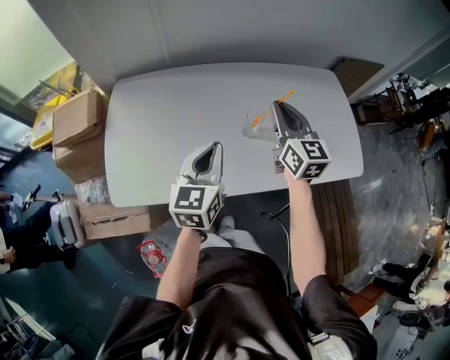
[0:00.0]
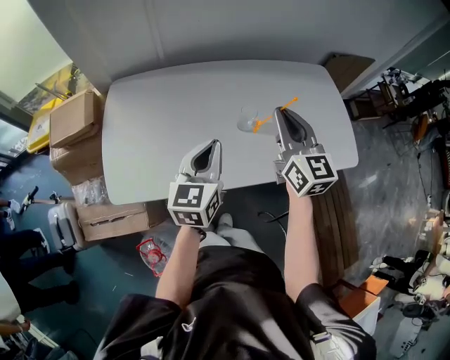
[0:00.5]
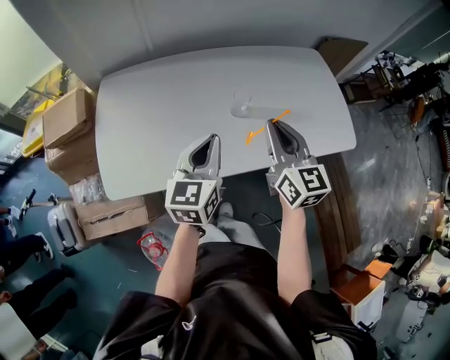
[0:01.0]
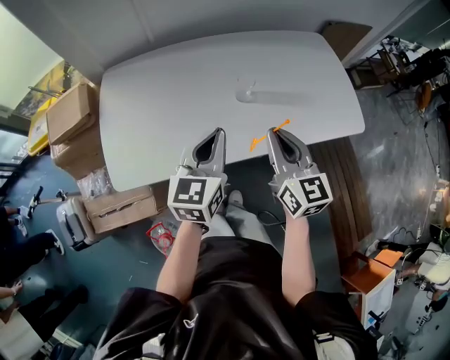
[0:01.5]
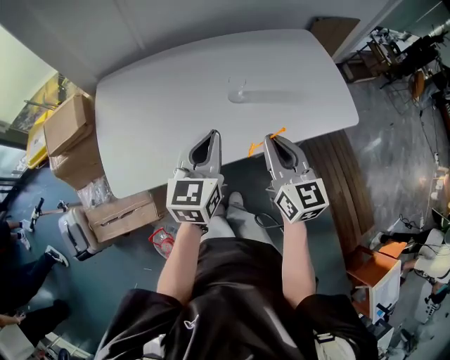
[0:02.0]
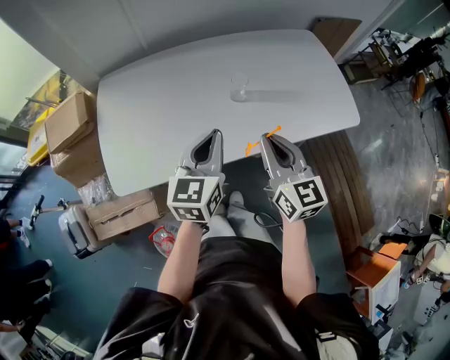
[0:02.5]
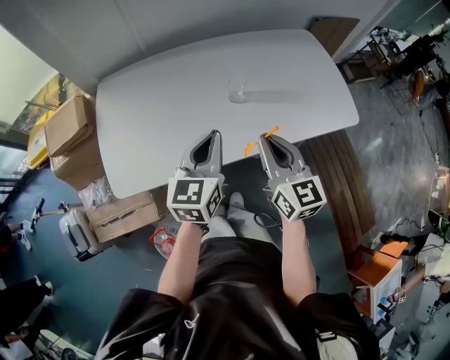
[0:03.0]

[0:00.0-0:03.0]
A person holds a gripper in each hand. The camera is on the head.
0:00.0 to 0:01.5: The left gripper shifts approximately 5 cm backward. Meanwhile the right gripper shifts about 20 cm backward.
0:01.5 to 0:03.0: The grippers move only a little.

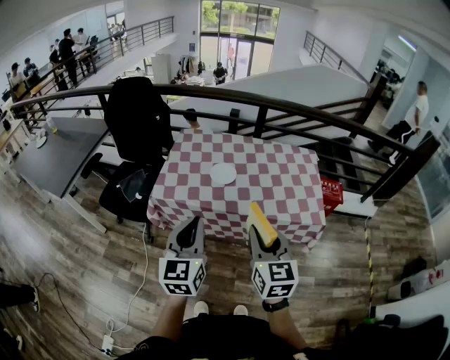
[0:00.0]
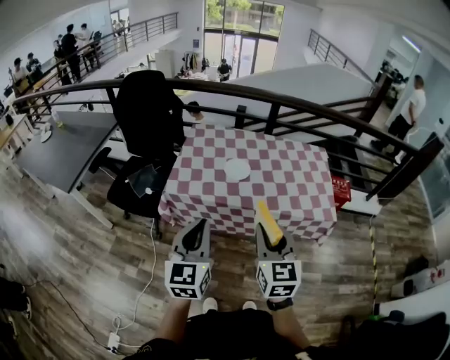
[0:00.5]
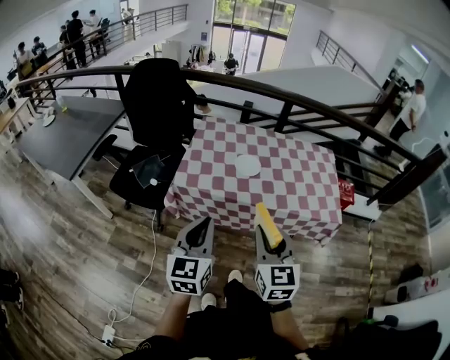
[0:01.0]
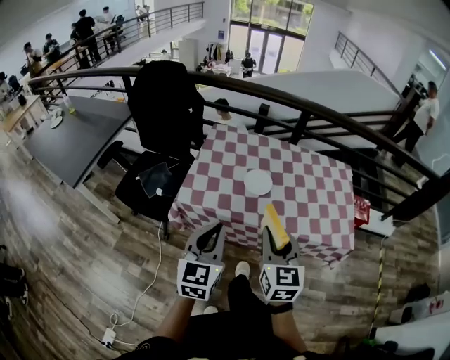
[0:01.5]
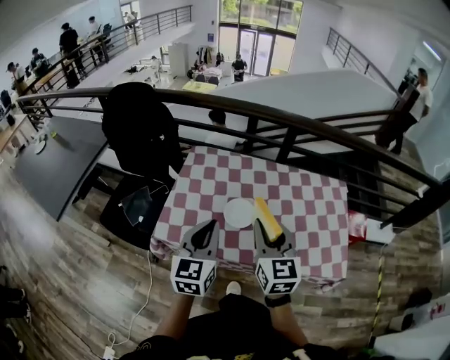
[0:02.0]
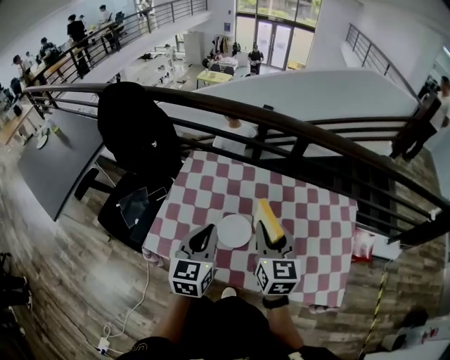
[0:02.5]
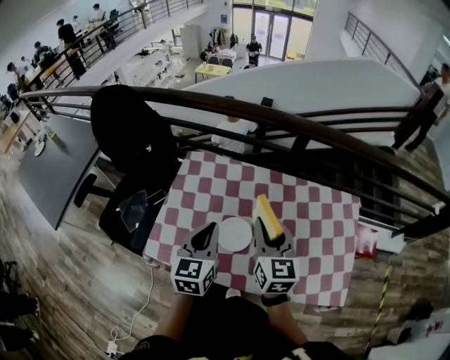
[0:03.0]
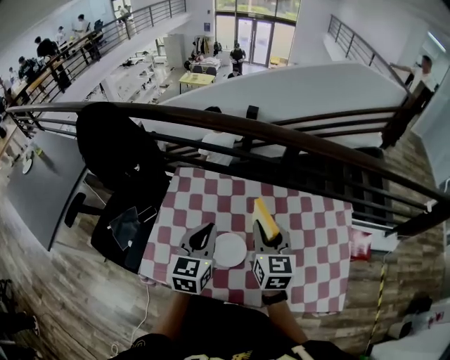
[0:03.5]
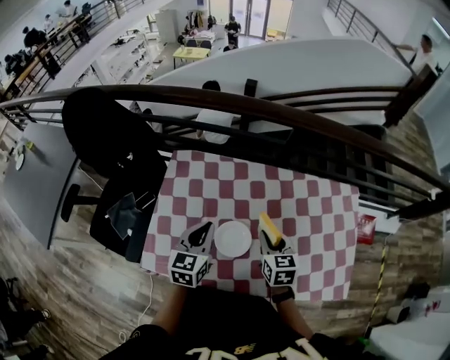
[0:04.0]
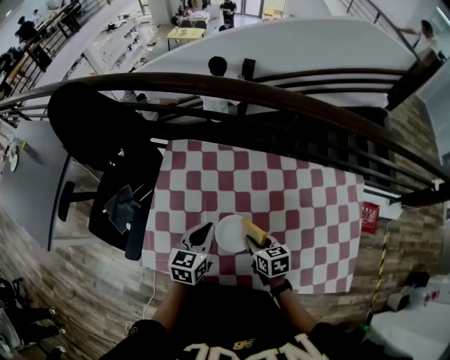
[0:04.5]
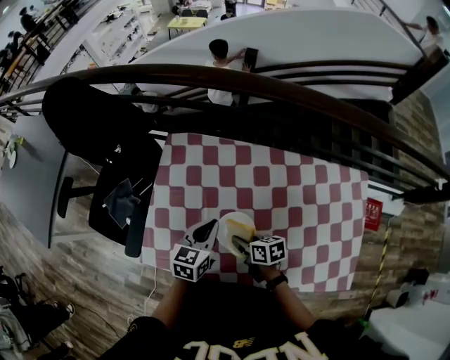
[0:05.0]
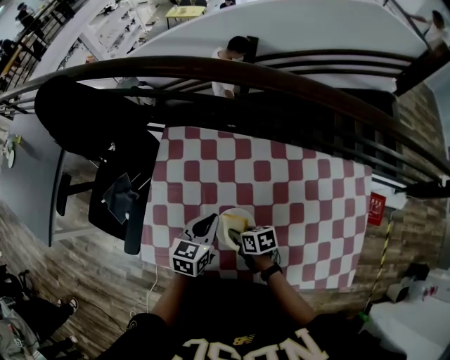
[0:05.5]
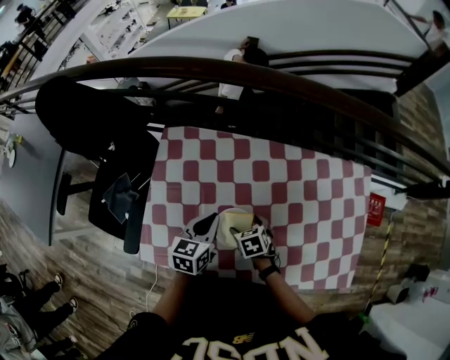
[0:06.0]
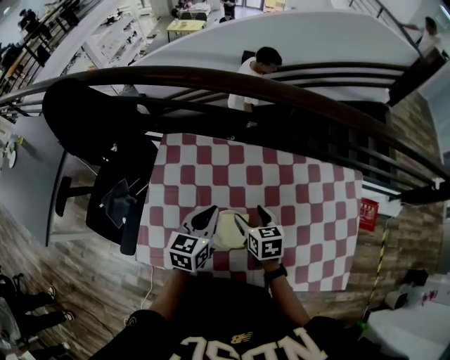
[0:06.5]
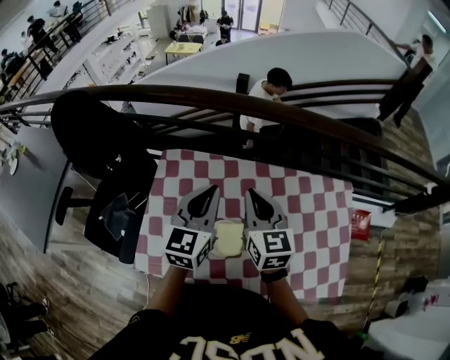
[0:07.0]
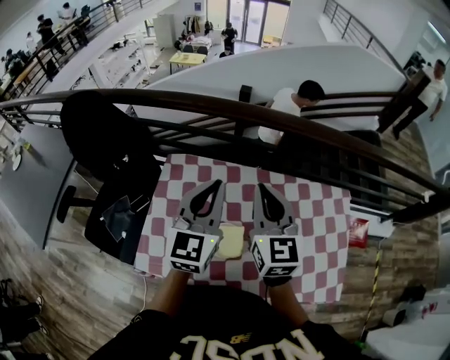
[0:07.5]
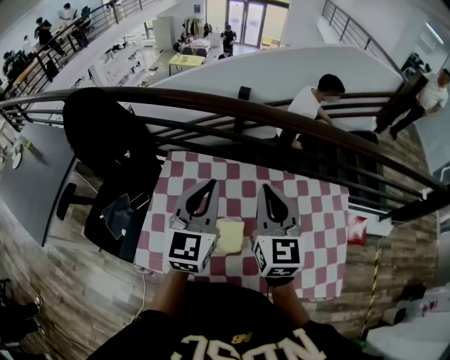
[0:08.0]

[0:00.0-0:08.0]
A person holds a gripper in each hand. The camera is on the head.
0:00.0 to 0:02.0: Both grippers move forward, some 30 cm.
0:02.0 to 0:04.0: The right gripper goes about 30 cm downward and forward, and turns by roughly 30 degrees; the left gripper heads forward and downward, covering approximately 25 cm.
0:04.0 to 0:06.0: The left gripper shifts roughly 10 cm downward. The right gripper shifts roughly 20 cm downward and to the left, rotates some 30 degrees, and opens up.
0:06.0 to 0:08.0: Both grippers travel together upward, approximately 35 cm. The right gripper tilts its fingers roughly 60 degrees upward, and closes up, while the left gripper angles its fingers upward, by about 30 degrees.

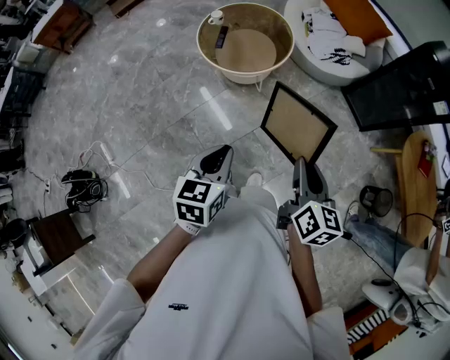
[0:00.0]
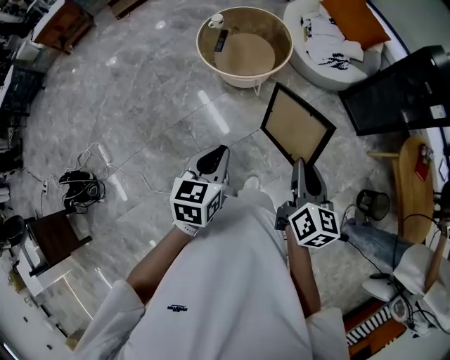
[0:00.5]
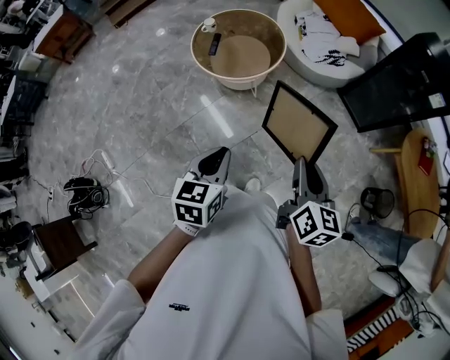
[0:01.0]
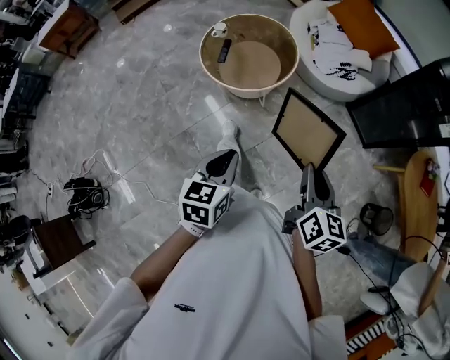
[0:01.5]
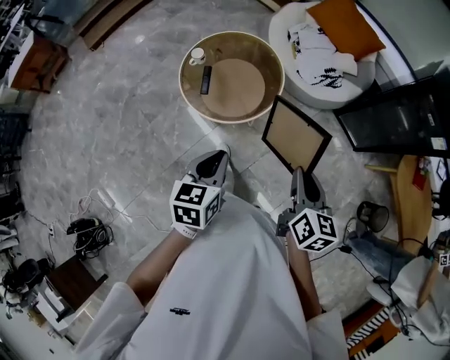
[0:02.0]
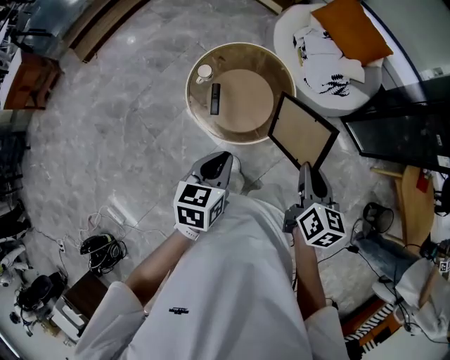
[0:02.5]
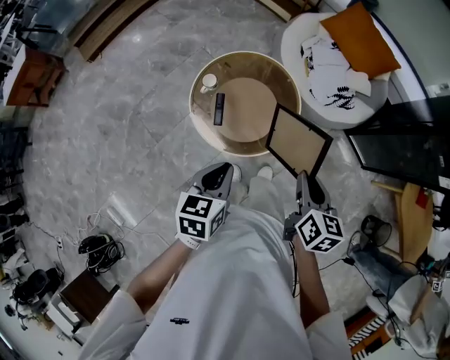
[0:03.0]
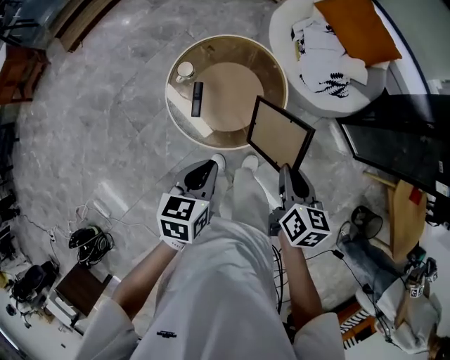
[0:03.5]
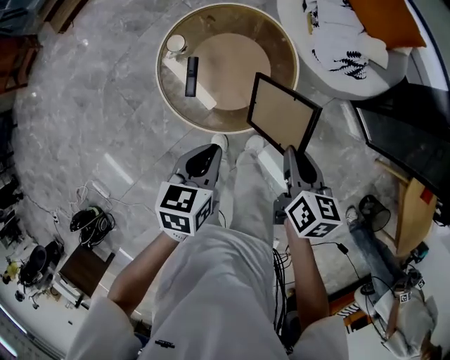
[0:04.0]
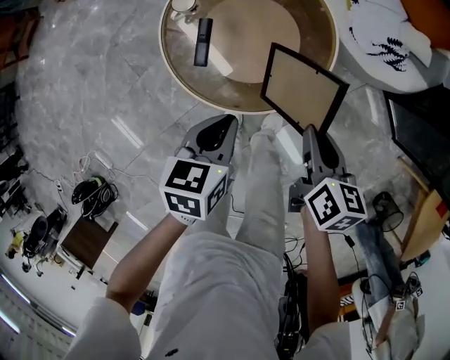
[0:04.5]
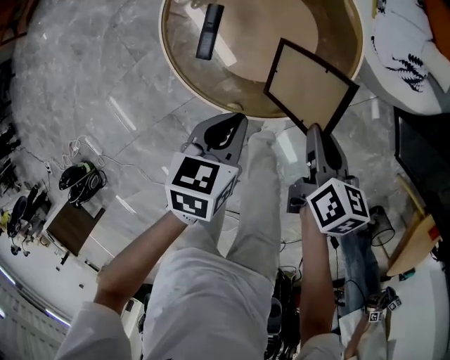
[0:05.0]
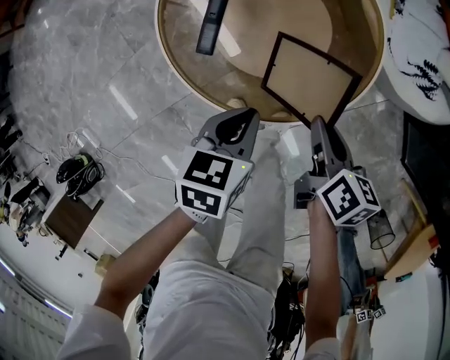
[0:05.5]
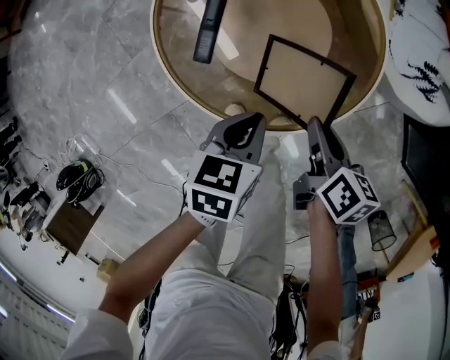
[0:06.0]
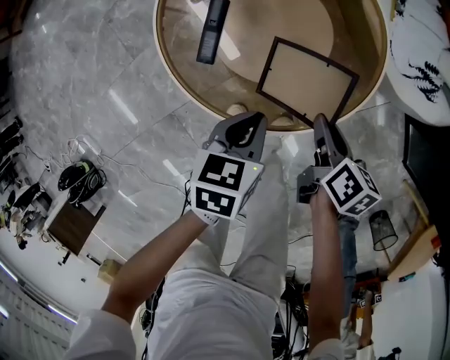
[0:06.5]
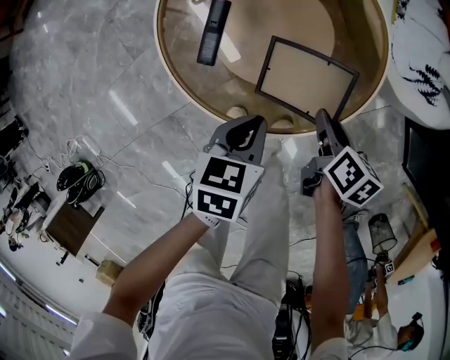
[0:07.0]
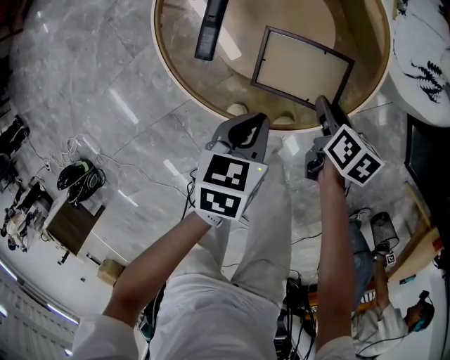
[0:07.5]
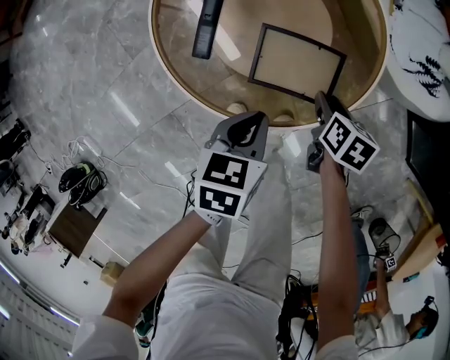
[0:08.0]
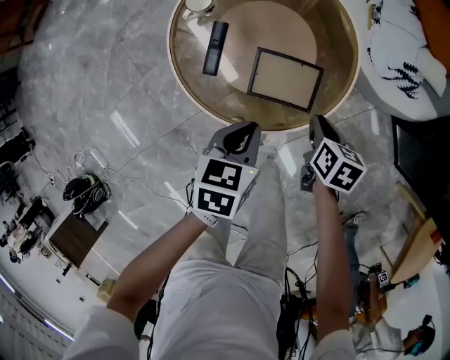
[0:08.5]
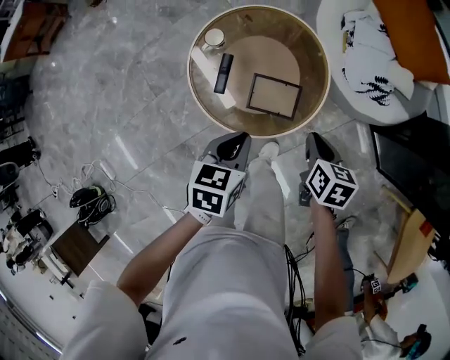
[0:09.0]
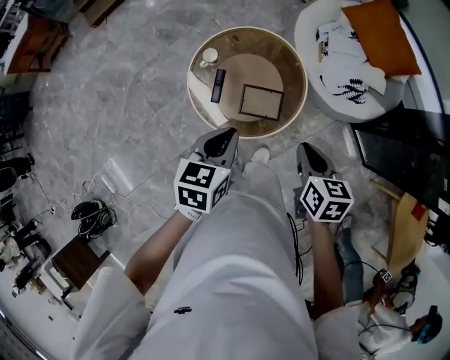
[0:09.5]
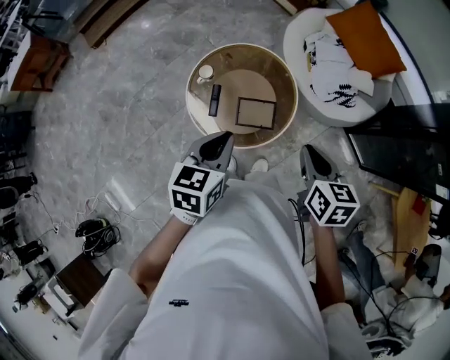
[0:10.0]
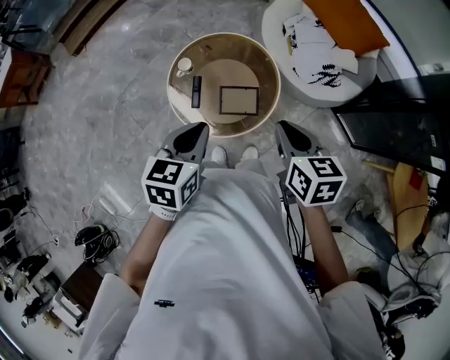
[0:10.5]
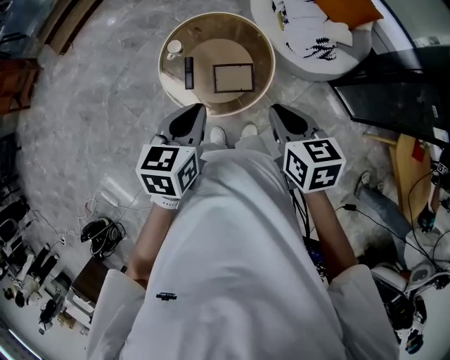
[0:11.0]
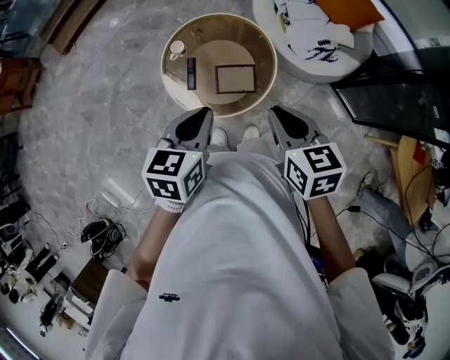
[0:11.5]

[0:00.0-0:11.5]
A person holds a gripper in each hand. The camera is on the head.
0:00.0 to 0:02.0: Both grippers travel together forward, roughly 25 cm.
0:02.0 to 0:04.0: Both grippers move forward and downward, some 30 cm.
0:04.0 to 0:06.0: Both grippers move downward, some 30 cm.
0:06.0 to 0:07.5: The right gripper goes some 10 cm downward, and opens up.
0:07.5 to 0:09.5: Both grippers travel together upward, roughly 40 cm. The right gripper changes its angle by roughly 20 degrees, and closes up.
0:09.5 to 0:11.5: The two grippers go about 10 cm upward.

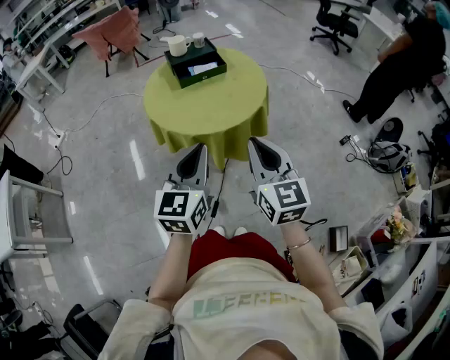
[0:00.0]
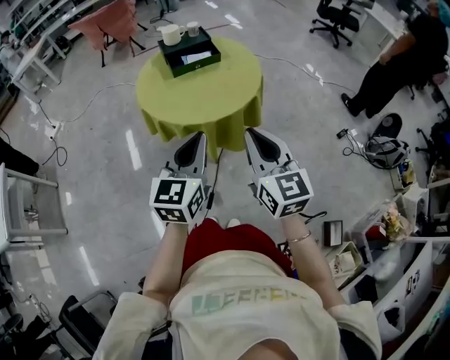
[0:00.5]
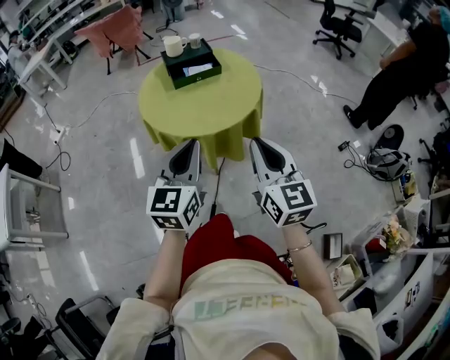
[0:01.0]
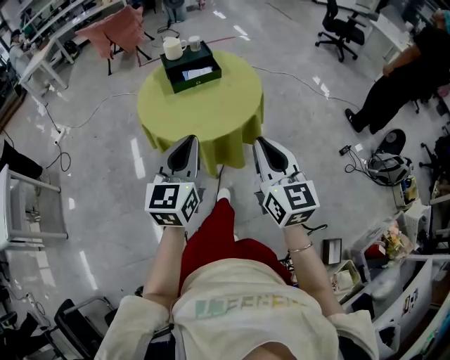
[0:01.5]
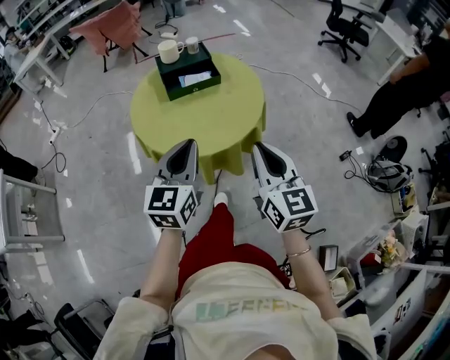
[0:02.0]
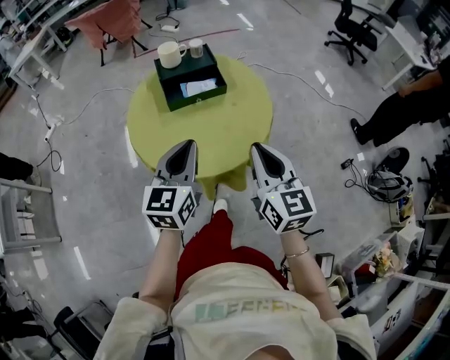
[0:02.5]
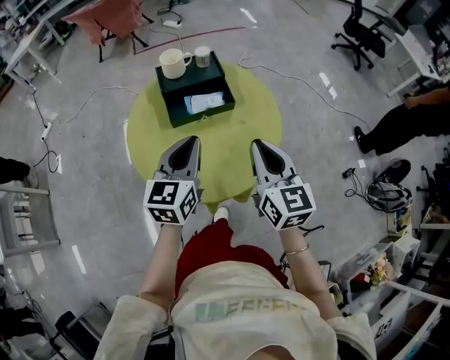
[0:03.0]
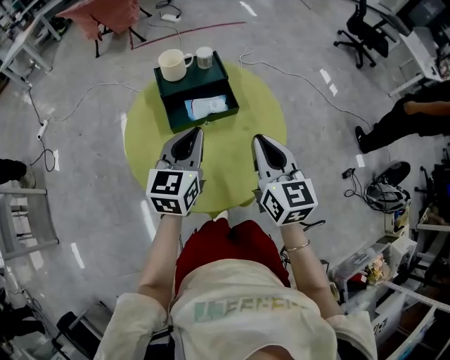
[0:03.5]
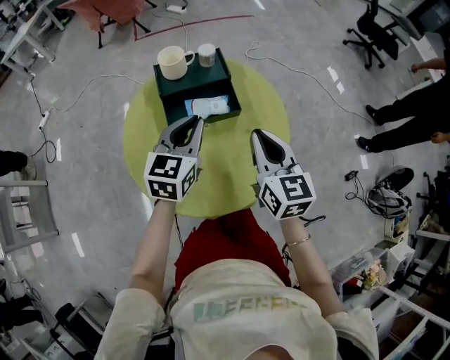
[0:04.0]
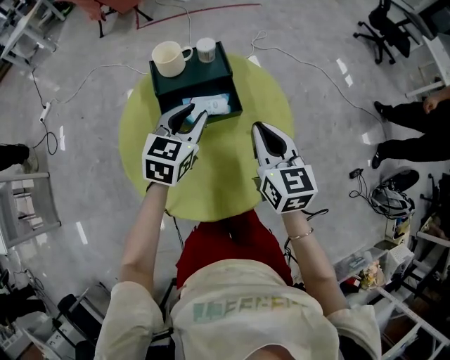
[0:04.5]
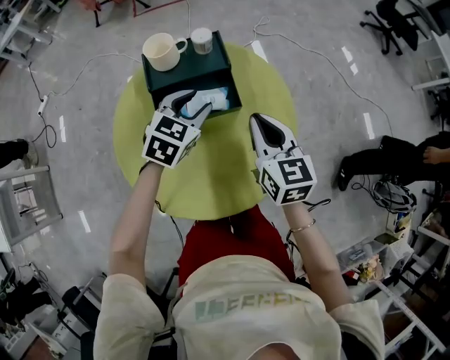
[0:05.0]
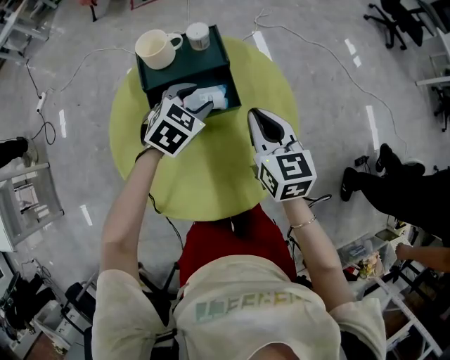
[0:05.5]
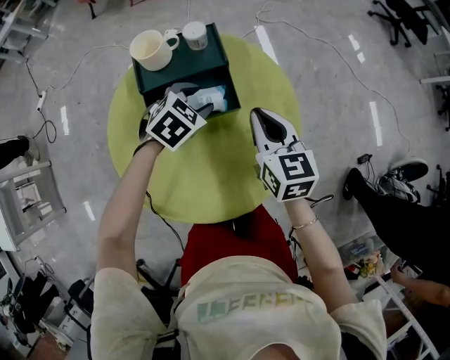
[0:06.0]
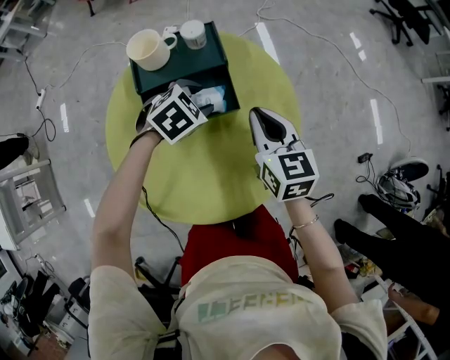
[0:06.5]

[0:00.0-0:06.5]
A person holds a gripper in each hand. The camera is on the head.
0:00.0 to 0:02.0: The right gripper shifts roughly 15 cm forward and to the right; the left gripper shifts approximately 15 cm forward.
0:02.0 to 0:04.5: The two grippers go roughly 40 cm forward. The left gripper opens its fingers.
0:04.5 to 0:06.5: The left gripper heads downward and forward, covering roughly 15 cm, and tips its fingers downward by approximately 40 degrees, while the right gripper is displaced forward and downward by some 10 cm.
